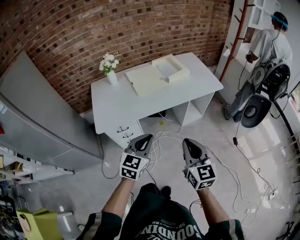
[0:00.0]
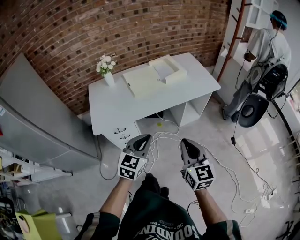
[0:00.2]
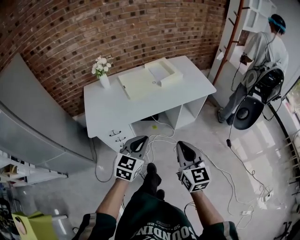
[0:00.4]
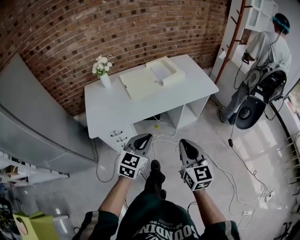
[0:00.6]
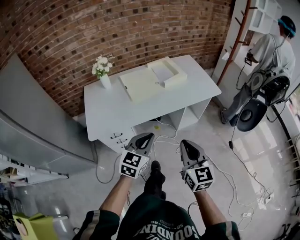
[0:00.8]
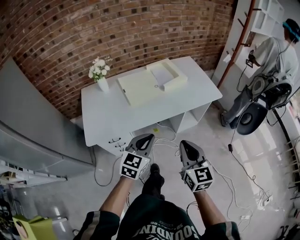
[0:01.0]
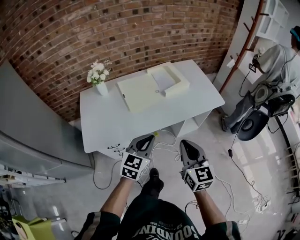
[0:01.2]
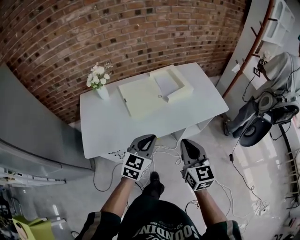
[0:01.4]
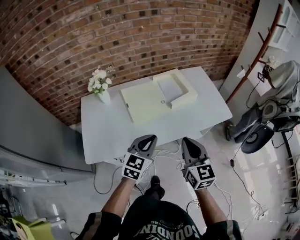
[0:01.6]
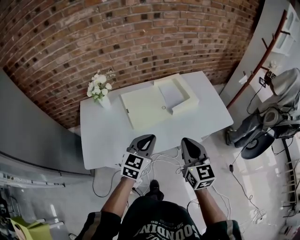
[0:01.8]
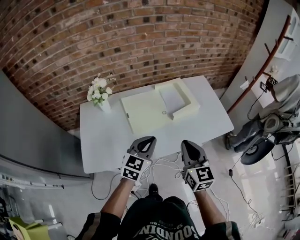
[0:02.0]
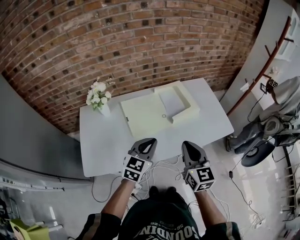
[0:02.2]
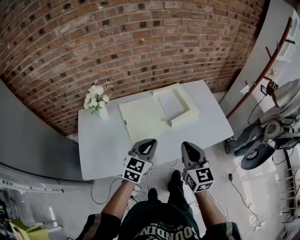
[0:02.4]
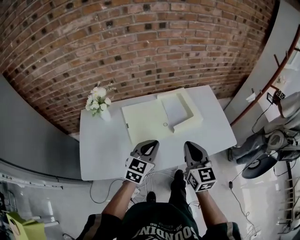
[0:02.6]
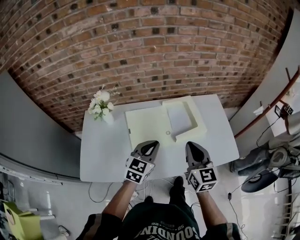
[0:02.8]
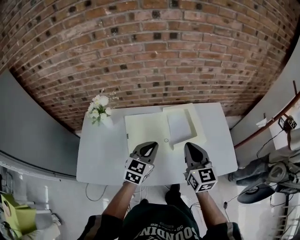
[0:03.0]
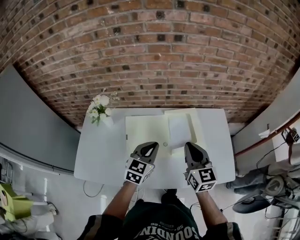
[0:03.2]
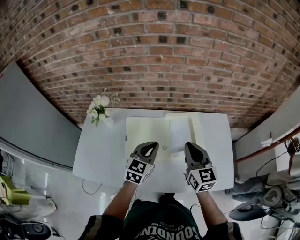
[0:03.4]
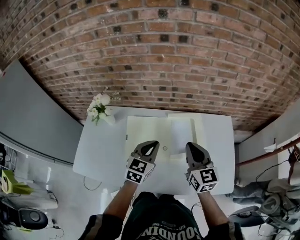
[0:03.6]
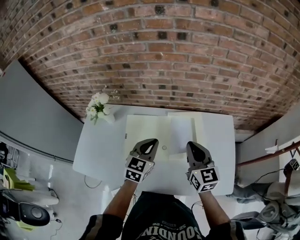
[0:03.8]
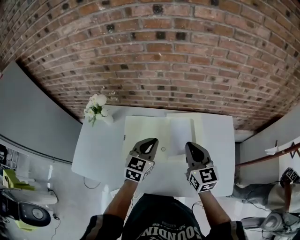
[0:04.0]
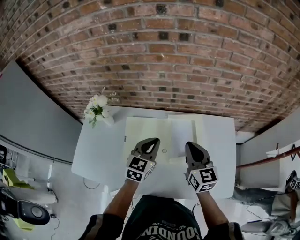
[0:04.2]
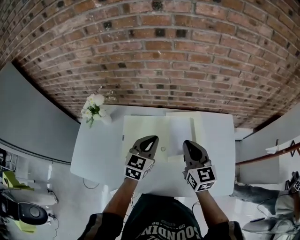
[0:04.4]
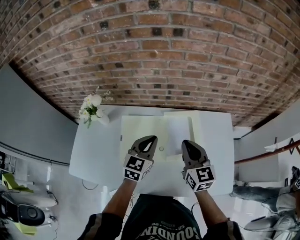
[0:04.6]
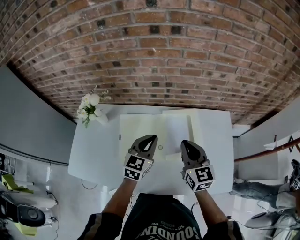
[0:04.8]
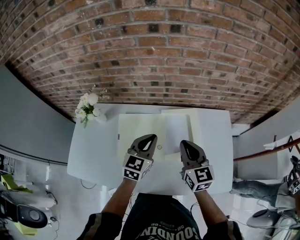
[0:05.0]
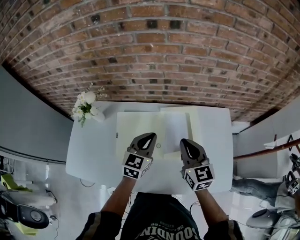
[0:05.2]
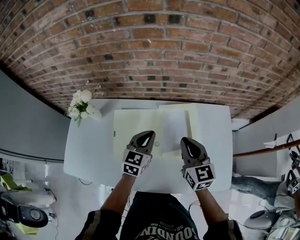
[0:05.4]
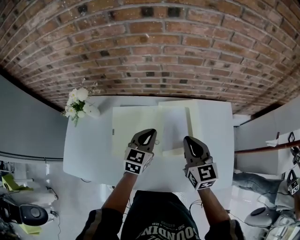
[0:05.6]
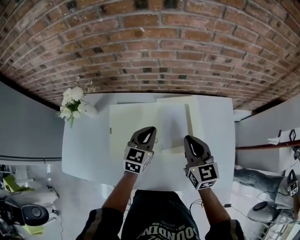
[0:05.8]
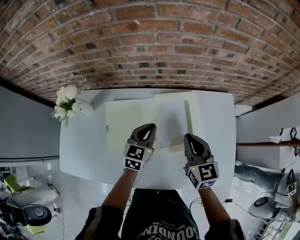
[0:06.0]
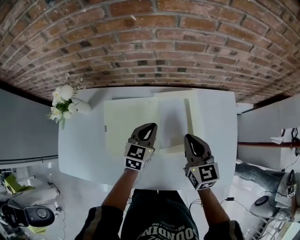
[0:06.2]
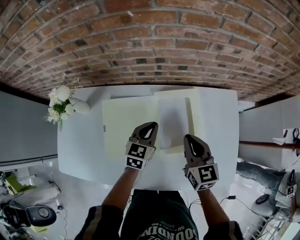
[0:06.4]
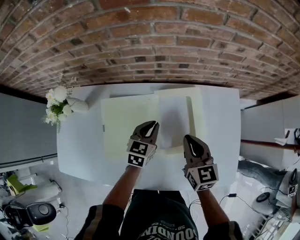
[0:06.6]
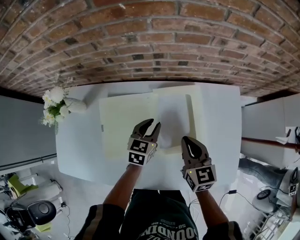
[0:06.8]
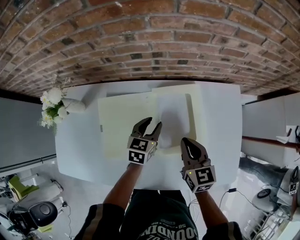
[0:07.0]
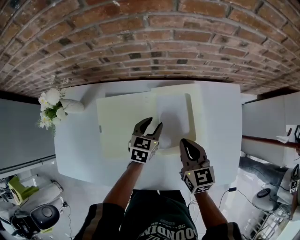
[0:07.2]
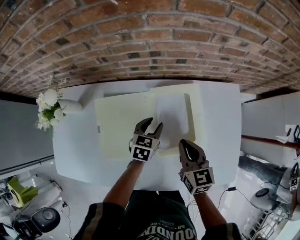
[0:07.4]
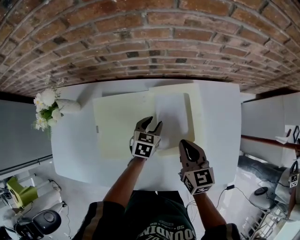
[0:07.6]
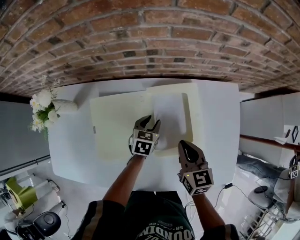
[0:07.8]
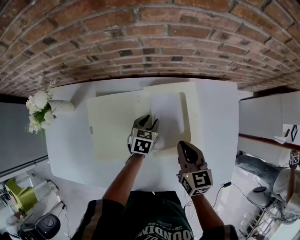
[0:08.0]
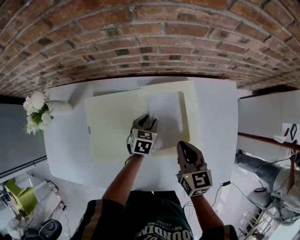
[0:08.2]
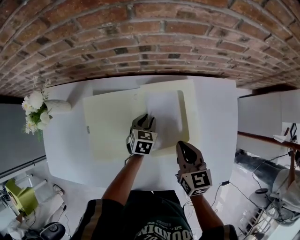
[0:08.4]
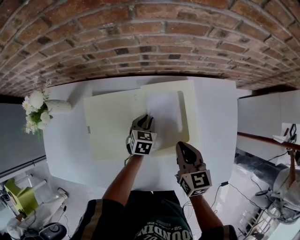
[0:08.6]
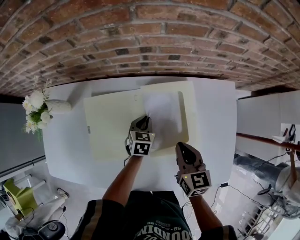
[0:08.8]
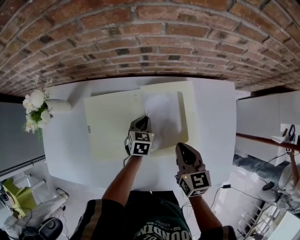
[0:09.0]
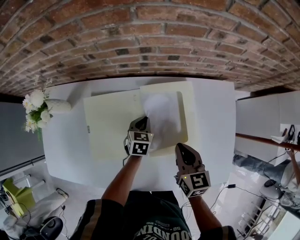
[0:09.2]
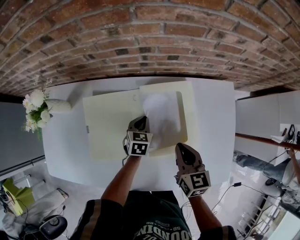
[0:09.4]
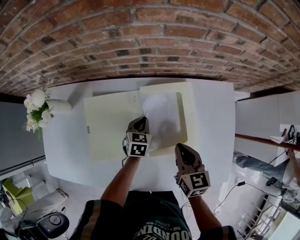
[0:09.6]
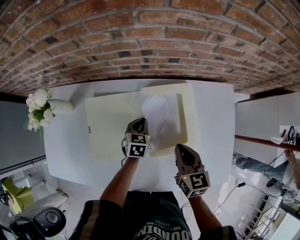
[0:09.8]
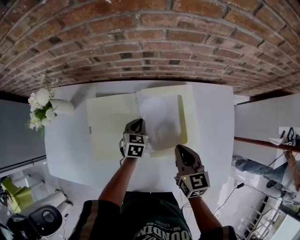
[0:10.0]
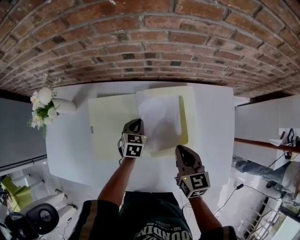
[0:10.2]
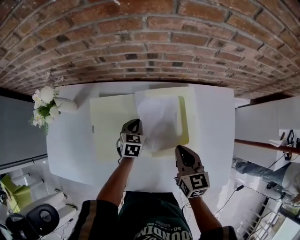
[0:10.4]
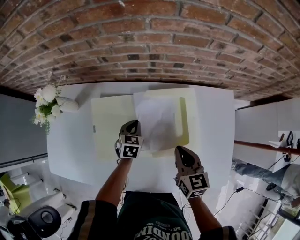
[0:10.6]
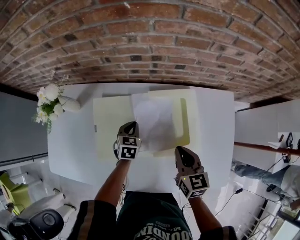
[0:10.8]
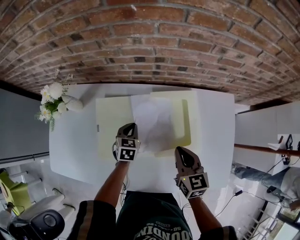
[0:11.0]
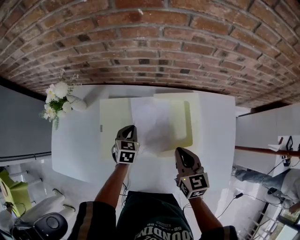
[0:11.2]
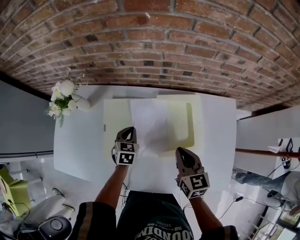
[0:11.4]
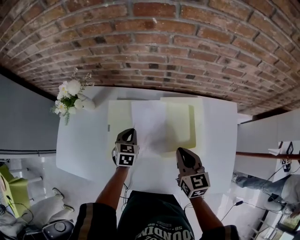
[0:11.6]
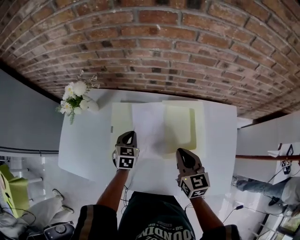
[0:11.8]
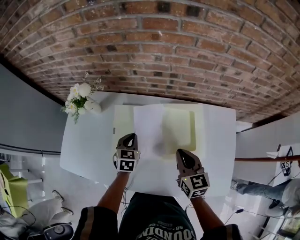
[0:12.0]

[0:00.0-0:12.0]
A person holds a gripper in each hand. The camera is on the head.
0:00.0 to 0:01.6: Both grippers travel together forward, some 30 cm.
0:01.6 to 0:03.0: Both grippers move forward, about 25 cm.
0:03.0 to 0:04.4: The grippers both shift forward by about 10 cm.
0:04.4 to 0:06.0: The left gripper goes about 10 cm downward and forward. Meanwhile the right gripper is displaced downward by roughly 10 cm.
0:06.0 to 0:07.6: The right gripper goes approximately 10 cm downward, while the left gripper goes roughly 15 cm downward, changes its angle by approximately 20 degrees, and opens.
0:07.6 to 0:09.0: The left gripper closes its fingers.
0:09.0 to 0:10.4: The left gripper moves to the left, about 5 cm.
0:10.4 to 0:12.0: The right gripper is displaced upward and to the left by about 10 cm, while the left gripper goes some 15 cm upward, to the left and backward.

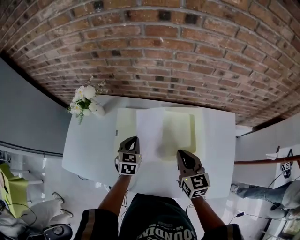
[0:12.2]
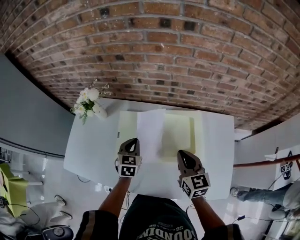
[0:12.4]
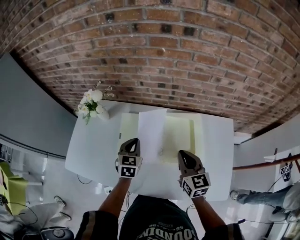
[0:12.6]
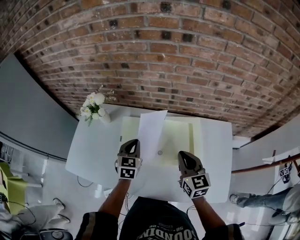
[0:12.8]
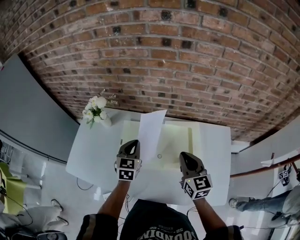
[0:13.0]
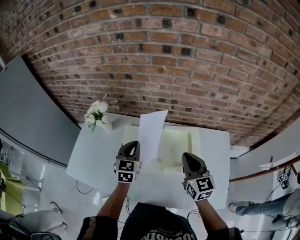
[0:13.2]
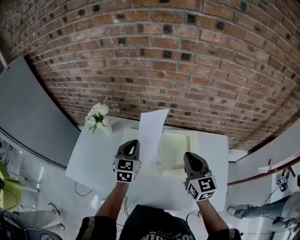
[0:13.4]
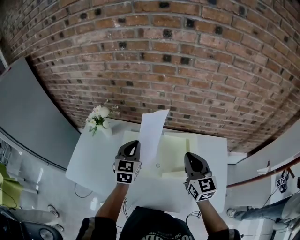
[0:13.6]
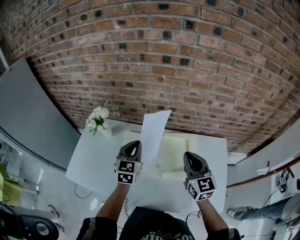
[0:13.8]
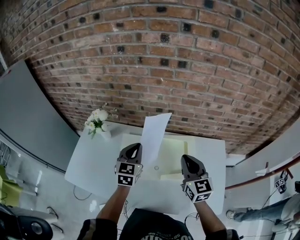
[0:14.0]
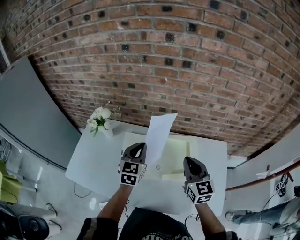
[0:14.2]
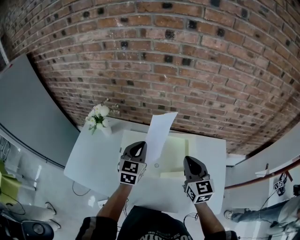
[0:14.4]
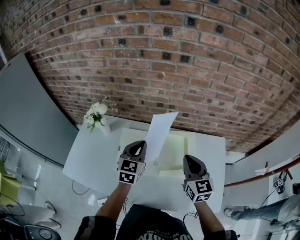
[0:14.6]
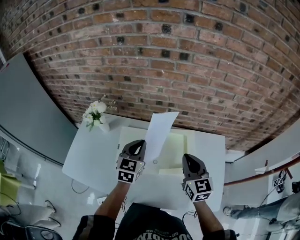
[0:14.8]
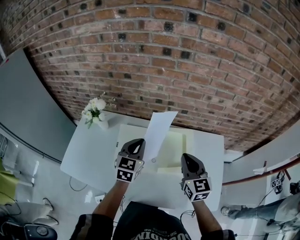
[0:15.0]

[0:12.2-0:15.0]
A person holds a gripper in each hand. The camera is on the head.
0:12.2 to 0:13.6: The two grippers go approximately 15 cm upward. The left gripper turns by approximately 20 degrees.
0:13.6 to 0:15.0: There are only small adjustments of the grippers.

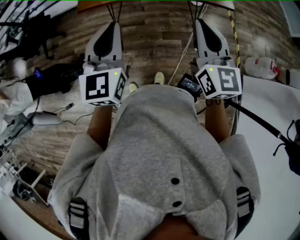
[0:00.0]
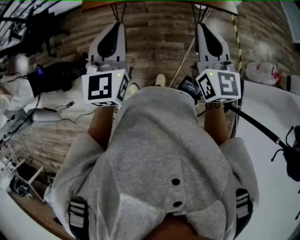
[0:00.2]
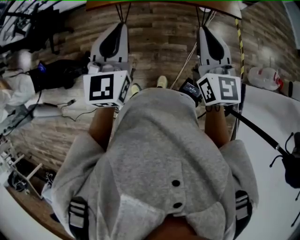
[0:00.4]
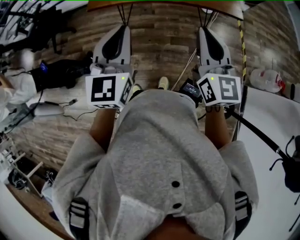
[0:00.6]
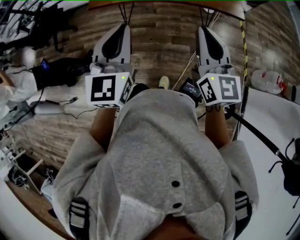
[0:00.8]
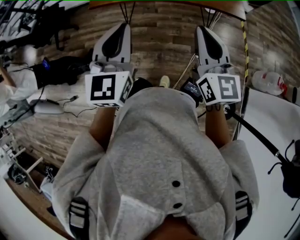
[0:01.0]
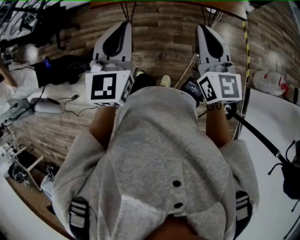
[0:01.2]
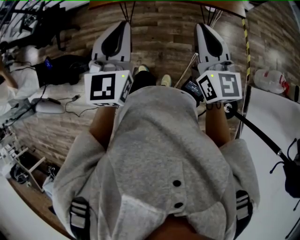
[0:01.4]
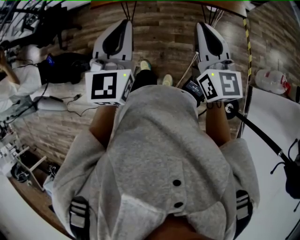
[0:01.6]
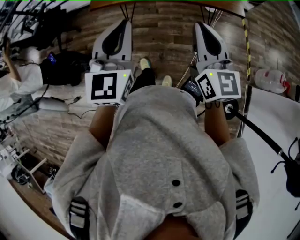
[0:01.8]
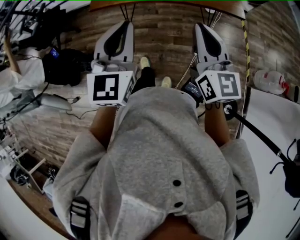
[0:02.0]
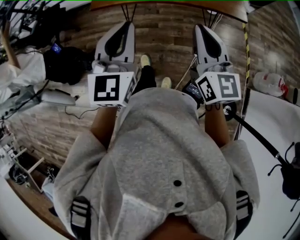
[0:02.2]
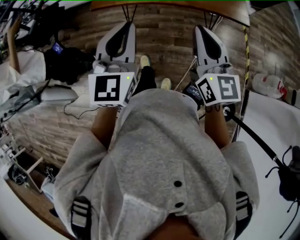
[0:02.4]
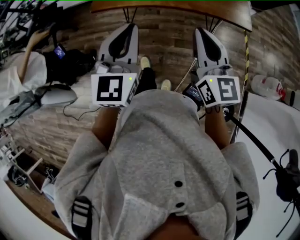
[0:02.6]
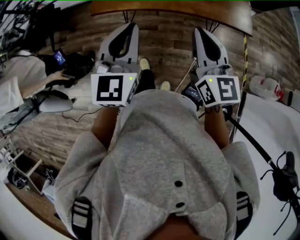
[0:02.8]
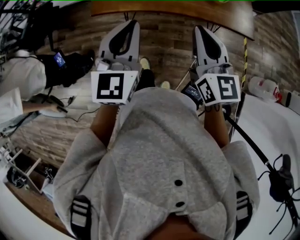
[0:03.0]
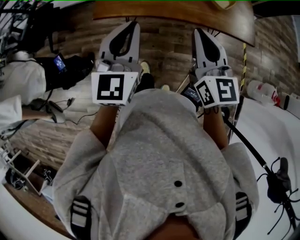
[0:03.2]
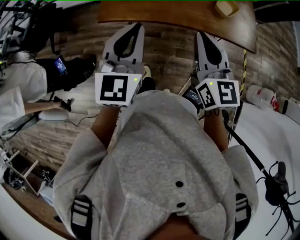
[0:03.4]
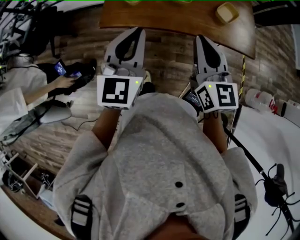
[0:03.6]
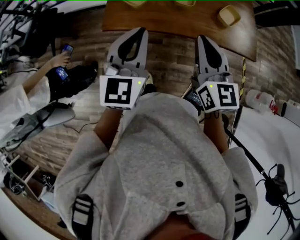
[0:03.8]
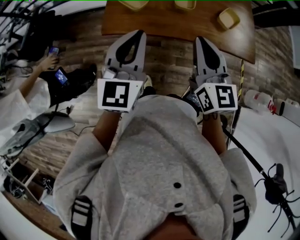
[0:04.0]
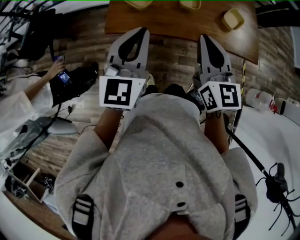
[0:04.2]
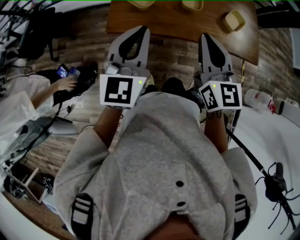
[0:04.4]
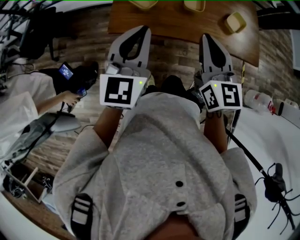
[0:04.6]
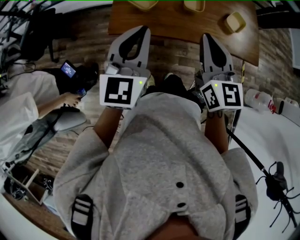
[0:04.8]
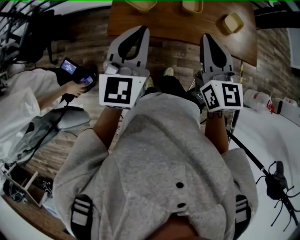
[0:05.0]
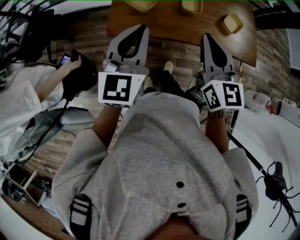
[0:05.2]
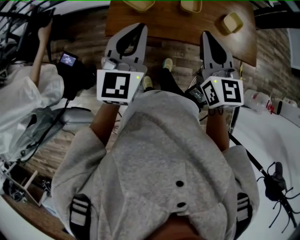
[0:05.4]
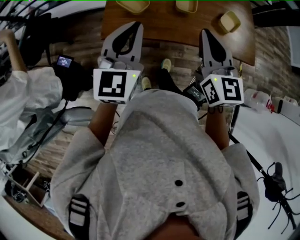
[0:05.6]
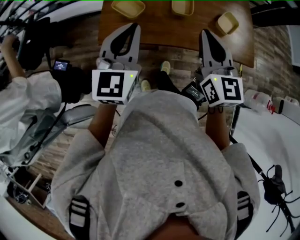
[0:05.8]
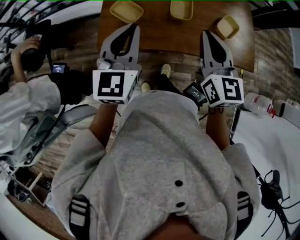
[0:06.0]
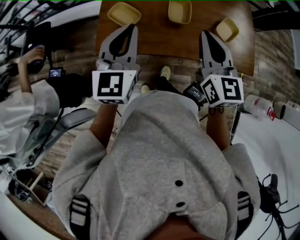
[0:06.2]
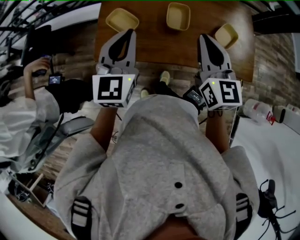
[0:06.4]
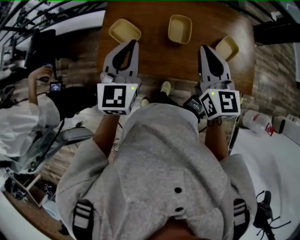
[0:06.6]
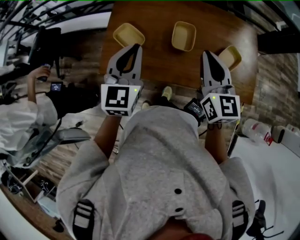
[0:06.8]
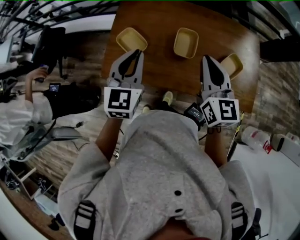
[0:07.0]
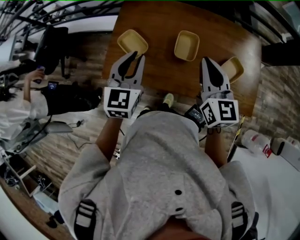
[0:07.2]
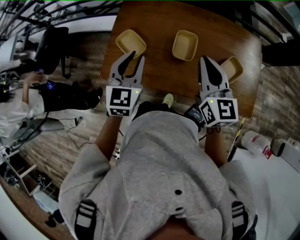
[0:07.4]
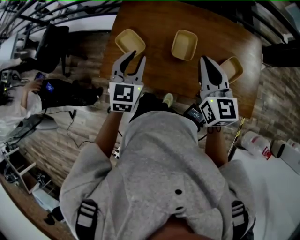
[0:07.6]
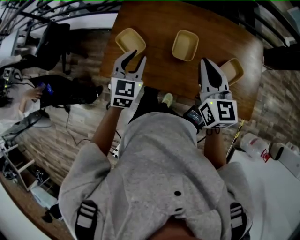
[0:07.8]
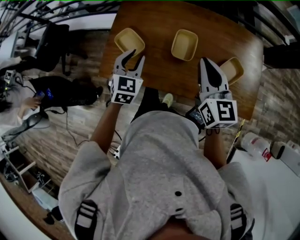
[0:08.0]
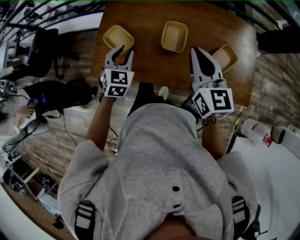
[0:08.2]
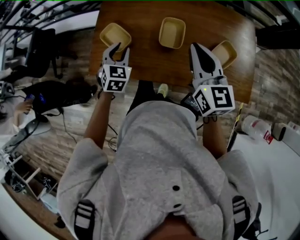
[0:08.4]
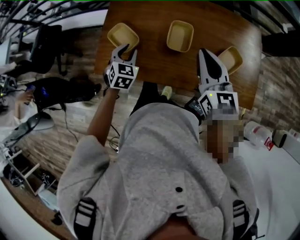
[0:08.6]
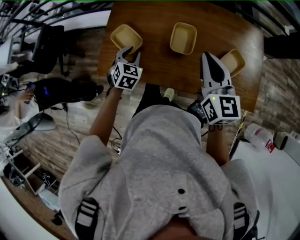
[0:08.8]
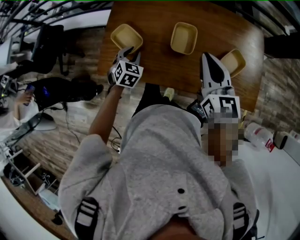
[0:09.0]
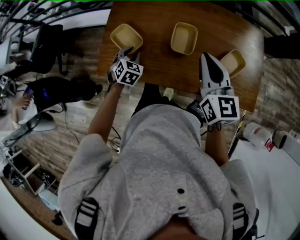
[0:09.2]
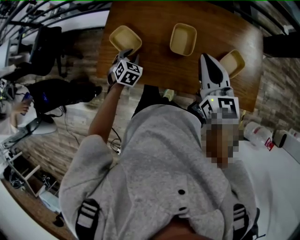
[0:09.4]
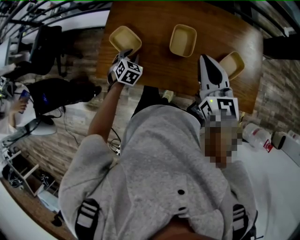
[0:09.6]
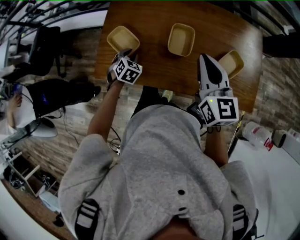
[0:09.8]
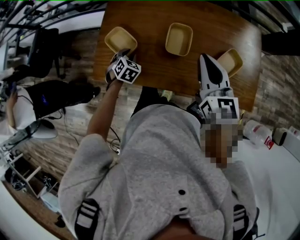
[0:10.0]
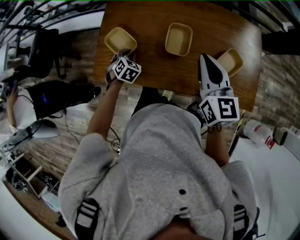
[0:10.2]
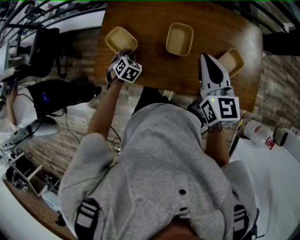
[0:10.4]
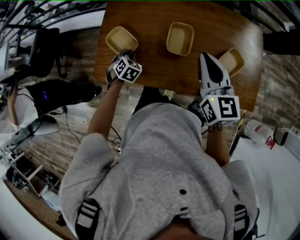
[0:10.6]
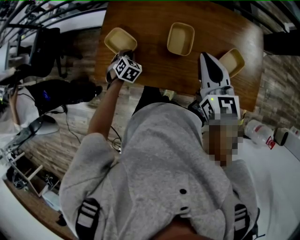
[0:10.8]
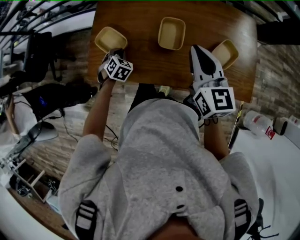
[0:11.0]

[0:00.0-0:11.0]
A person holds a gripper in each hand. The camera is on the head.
0:00.0 to 0:01.6: The left gripper moves to the right, approximately 5 cm.
0:01.6 to 0:03.2: The grippers both shift forward and to the left by some 20 cm.
0:03.2 to 0:04.8: Both grippers move to the left and forward, approximately 15 cm.
0:04.8 to 0:06.2: The two grippers go about 15 cm forward and to the right.
0:06.2 to 0:07.8: The right gripper is displaced forward and to the right by some 10 cm. The left gripper moves downward and forward, about 15 cm, rotates about 20 degrees, and opens.
0:07.8 to 0:09.4: The left gripper heads downward, covering some 20 cm, and swivels approximately 30 degrees.
0:09.4 to 0:11.0: There are only small adjustments of the grippers.
